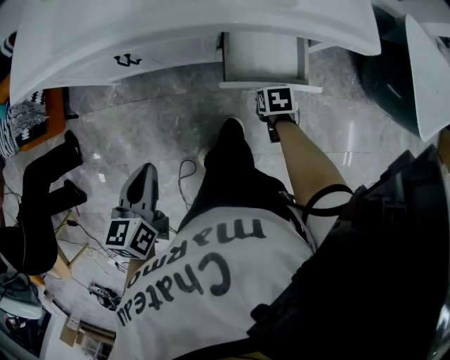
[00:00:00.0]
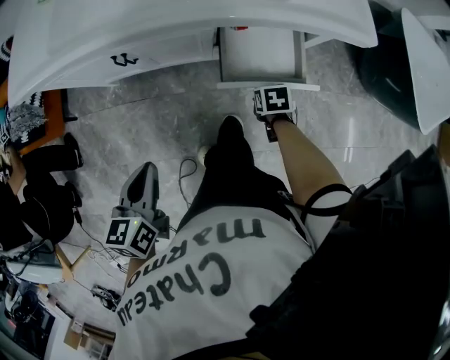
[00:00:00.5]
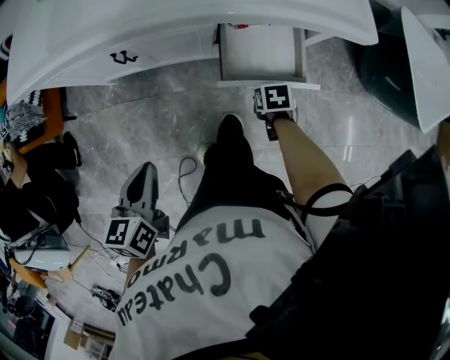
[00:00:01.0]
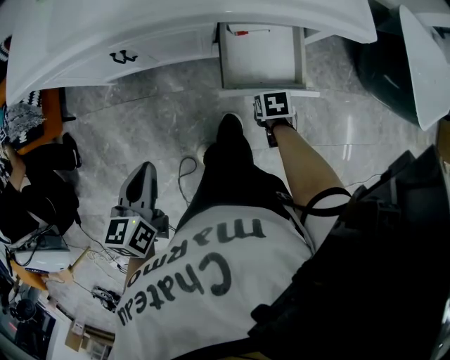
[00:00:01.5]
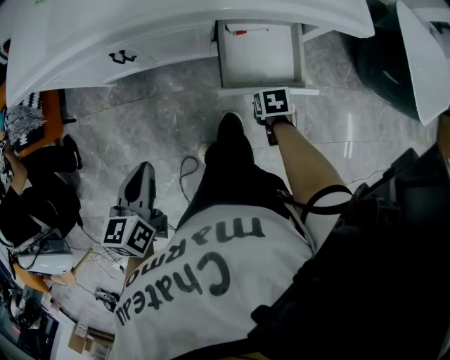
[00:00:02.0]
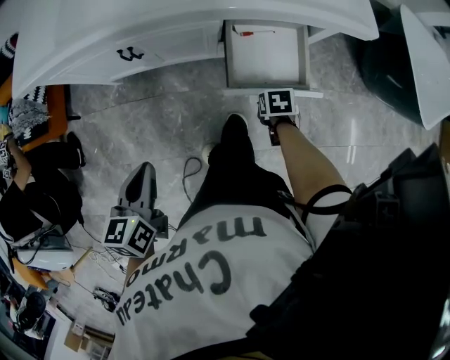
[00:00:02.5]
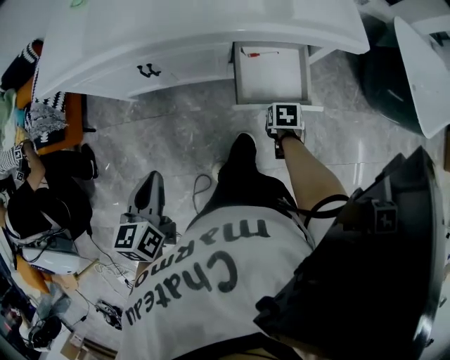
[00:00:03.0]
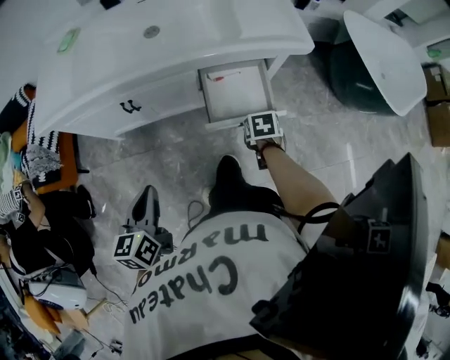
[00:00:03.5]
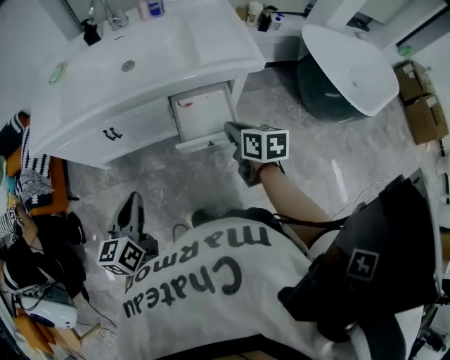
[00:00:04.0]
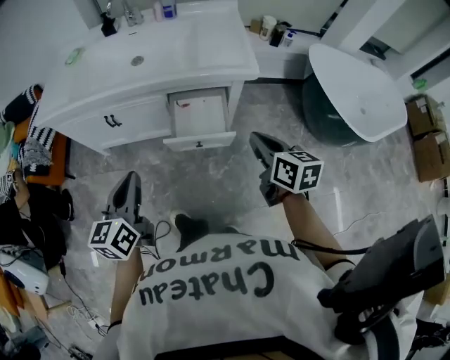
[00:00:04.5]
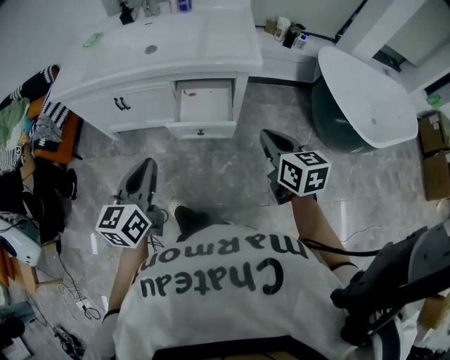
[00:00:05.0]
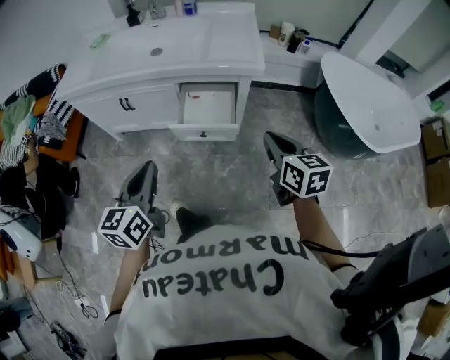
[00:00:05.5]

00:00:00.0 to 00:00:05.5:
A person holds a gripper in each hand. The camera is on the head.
00:00:00.0 to 00:00:02.0: The right gripper moves roughly 5 cm.
00:00:02.0 to 00:00:03.5: The right gripper travels upward by approximately 10 cm, and closes its fingers. Meanwhile the left gripper moves upward, roughly 5 cm.
00:00:03.5 to 00:00:05.5: The right gripper travels upward, to the right and backward by approximately 35 cm, and tilts its fingers some 40 degrees upward, while the left gripper travels to the right, upward and backward by some 25 cm.

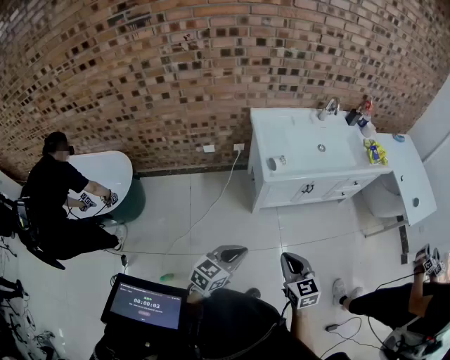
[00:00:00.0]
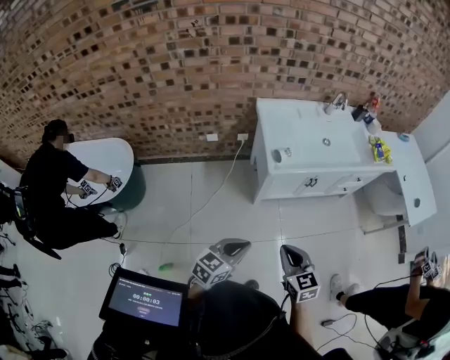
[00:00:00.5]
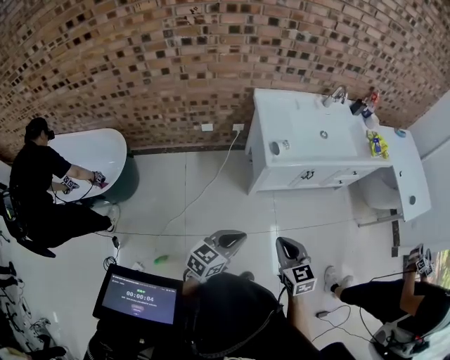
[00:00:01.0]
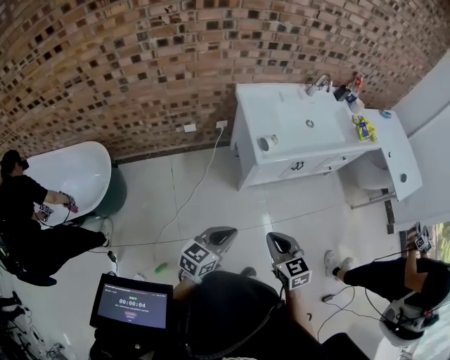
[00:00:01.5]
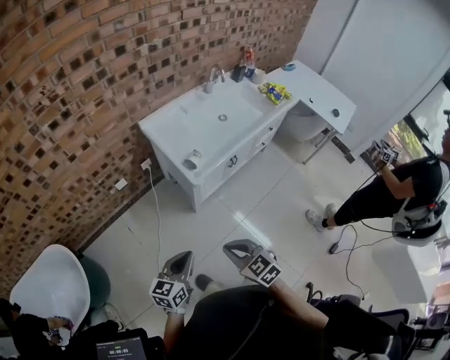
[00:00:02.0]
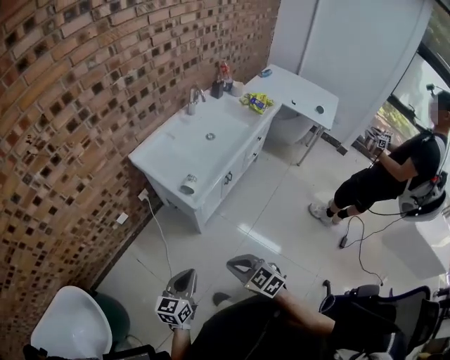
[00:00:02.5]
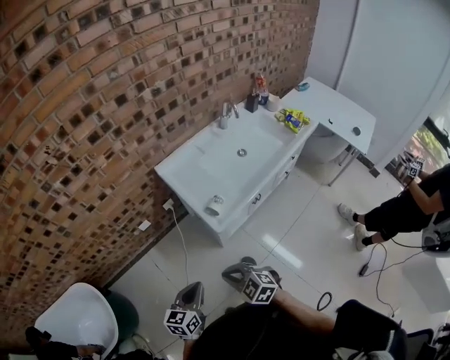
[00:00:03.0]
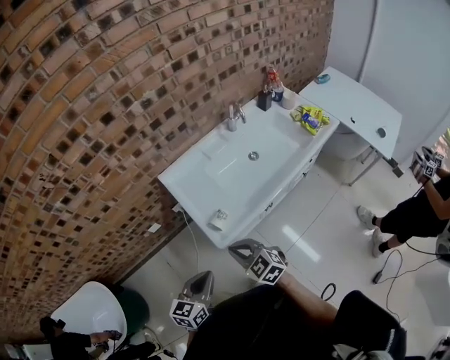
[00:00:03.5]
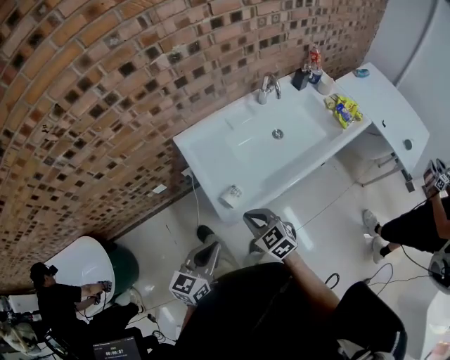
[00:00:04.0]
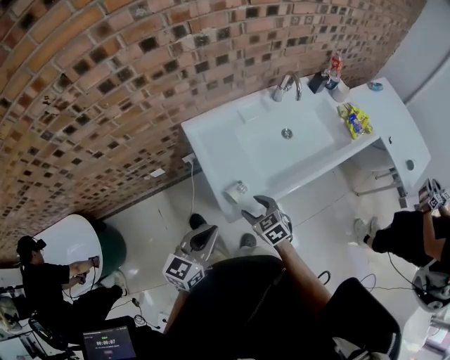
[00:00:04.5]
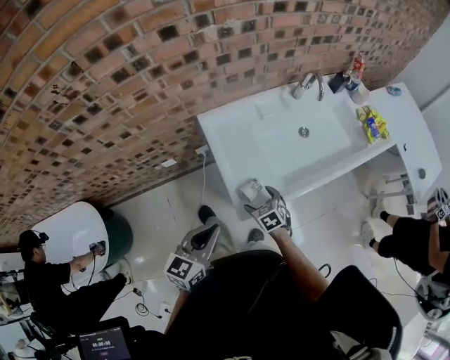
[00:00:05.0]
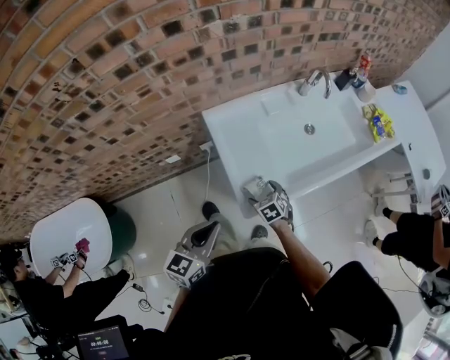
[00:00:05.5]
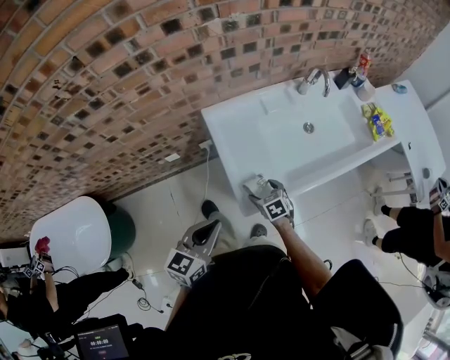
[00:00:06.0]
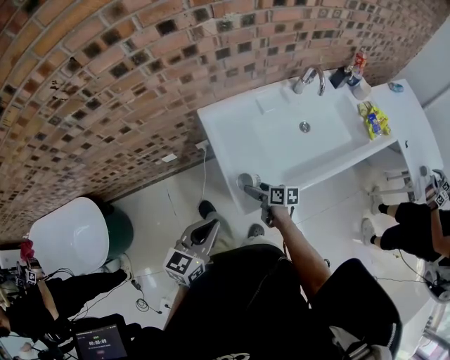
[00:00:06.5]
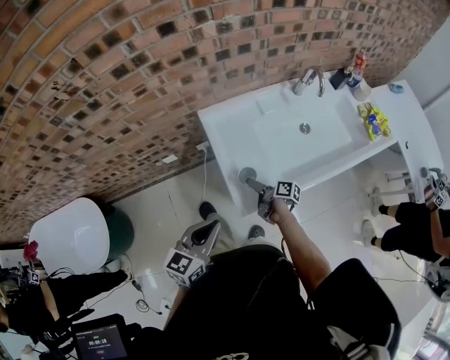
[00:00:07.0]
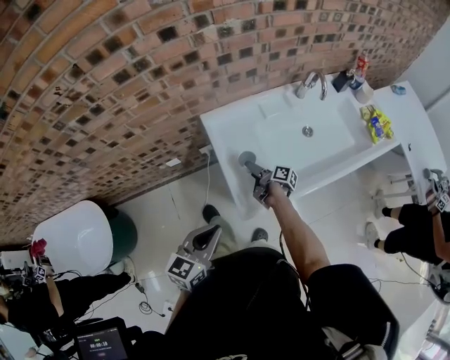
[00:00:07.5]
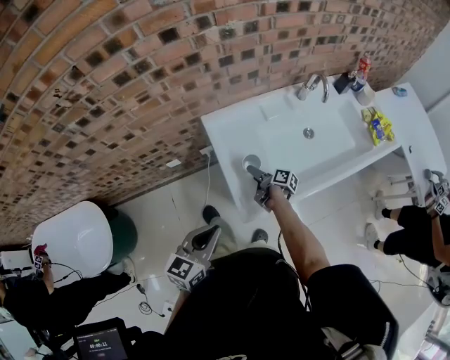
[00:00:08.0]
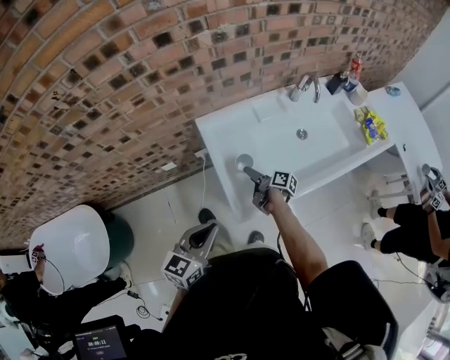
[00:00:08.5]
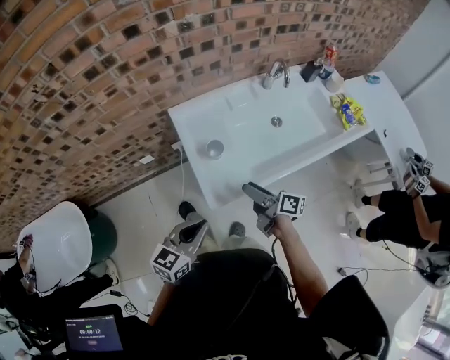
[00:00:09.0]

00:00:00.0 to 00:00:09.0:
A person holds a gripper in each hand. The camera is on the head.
00:00:00.0 to 00:00:02.0: The left gripper shifts approximately 15 cm to the left and forward, while the right gripper goes roughly 15 cm to the left.
00:00:02.0 to 00:00:04.5: Both grippers travel together forward, roughly 35 cm. The right gripper opens up.
00:00:04.5 to 00:00:07.0: The right gripper moves downward and forward, about 10 cm, rolls clockwise, seen from behind, by approximately 80 degrees, and opens up.
00:00:07.0 to 00:00:09.0: The left gripper moves to the right, approximately 5 cm. Meanwhile the right gripper goes some 20 cm upward, to the right and backward, and swivels about 20 degrees.

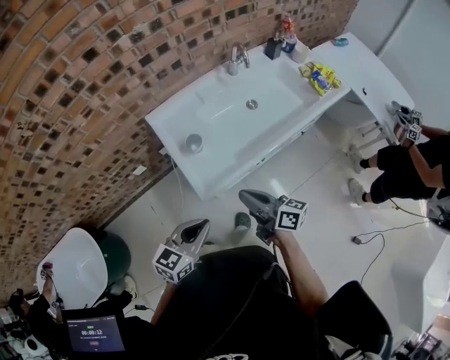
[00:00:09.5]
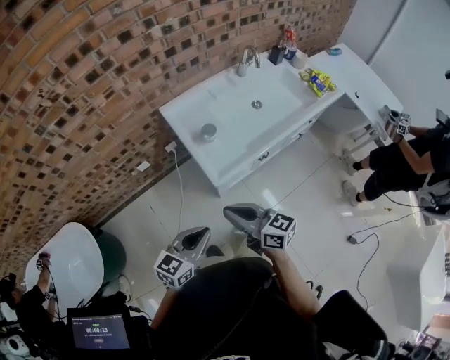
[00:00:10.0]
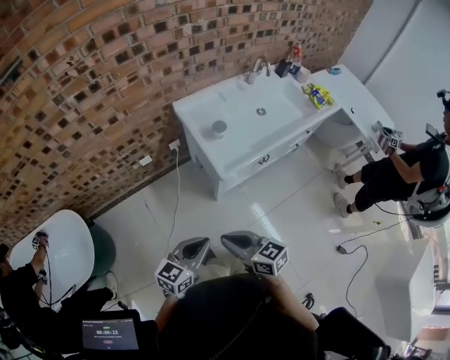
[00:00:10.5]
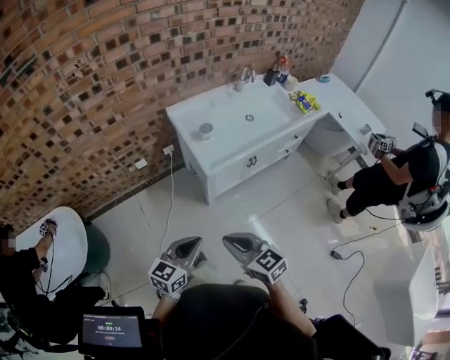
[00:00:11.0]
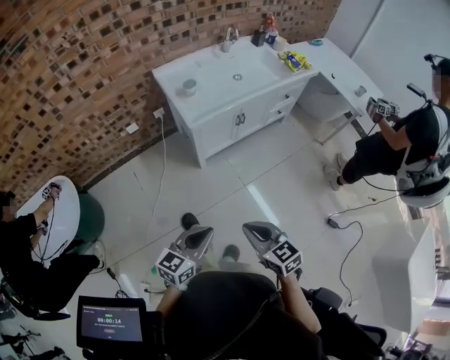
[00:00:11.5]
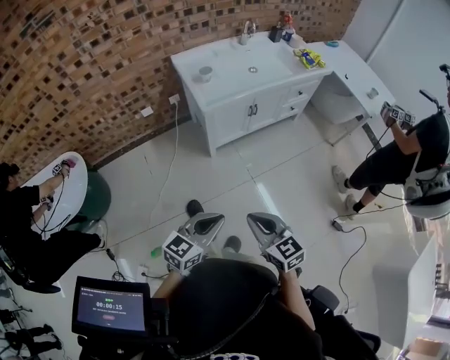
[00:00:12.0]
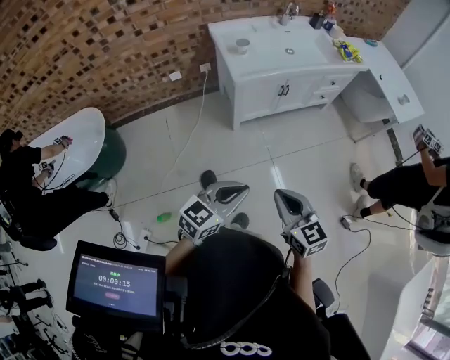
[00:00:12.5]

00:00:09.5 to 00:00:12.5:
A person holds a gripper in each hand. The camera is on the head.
00:00:09.5 to 00:00:11.0: The right gripper heads backward and to the left, covering approximately 35 cm, and twists roughly 40 degrees counterclockwise, seen from behind; the left gripper shifts approximately 25 cm backward.
00:00:11.0 to 00:00:12.5: The two grippers go about 25 cm backward and to the right.

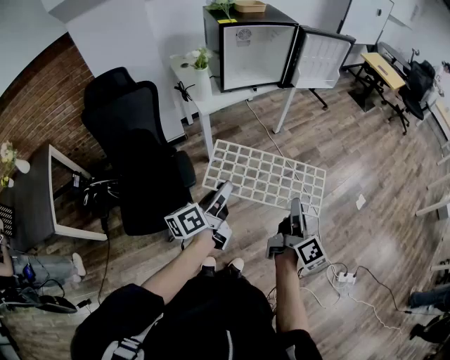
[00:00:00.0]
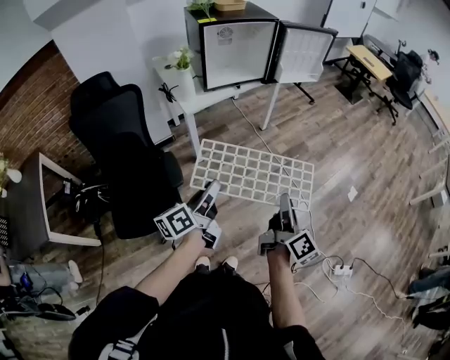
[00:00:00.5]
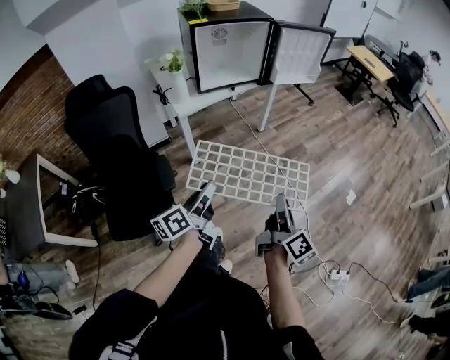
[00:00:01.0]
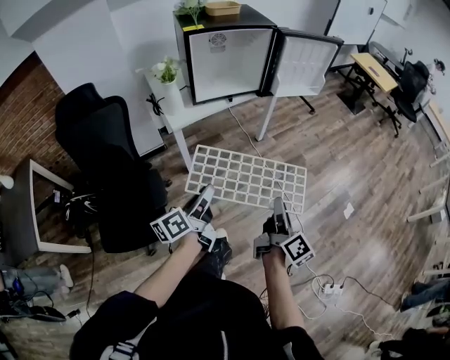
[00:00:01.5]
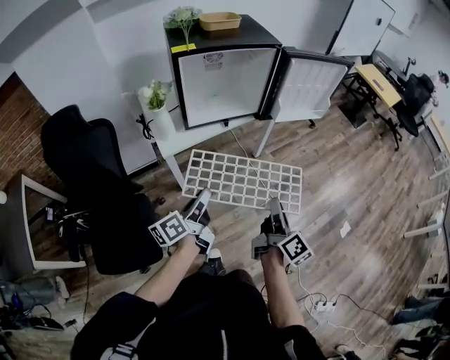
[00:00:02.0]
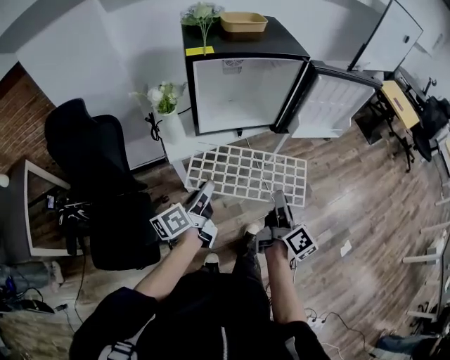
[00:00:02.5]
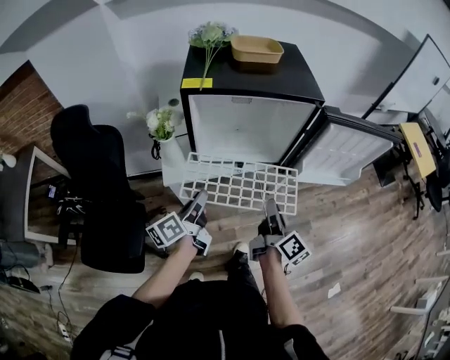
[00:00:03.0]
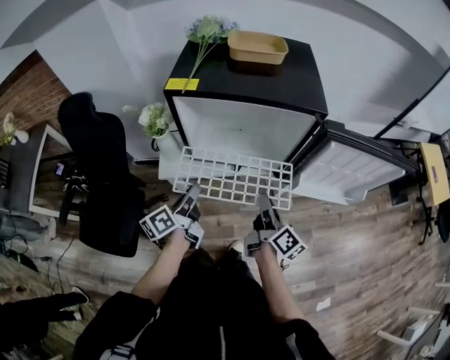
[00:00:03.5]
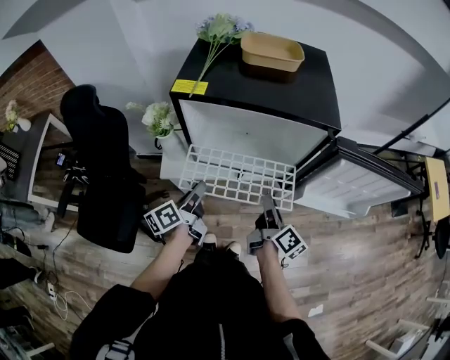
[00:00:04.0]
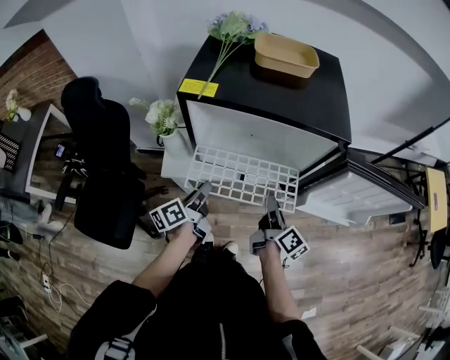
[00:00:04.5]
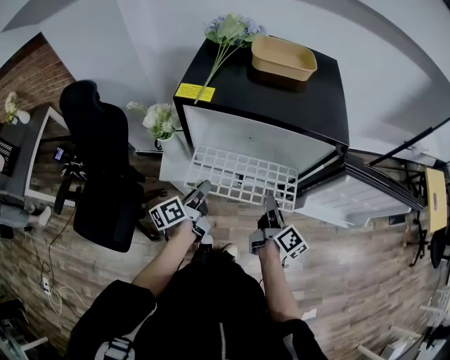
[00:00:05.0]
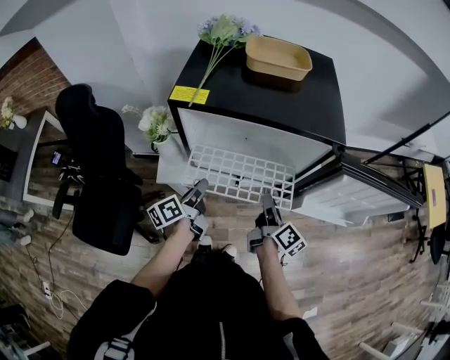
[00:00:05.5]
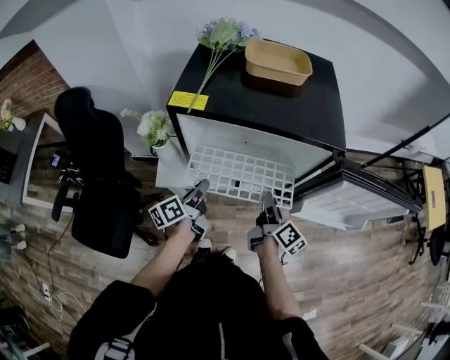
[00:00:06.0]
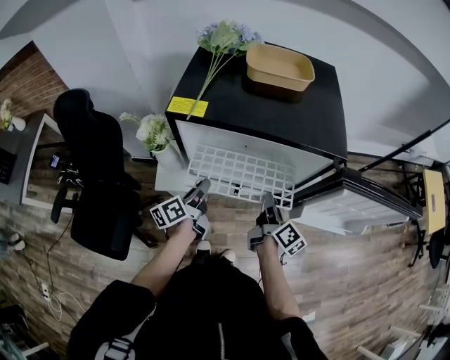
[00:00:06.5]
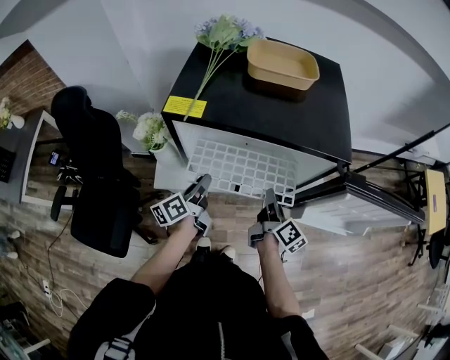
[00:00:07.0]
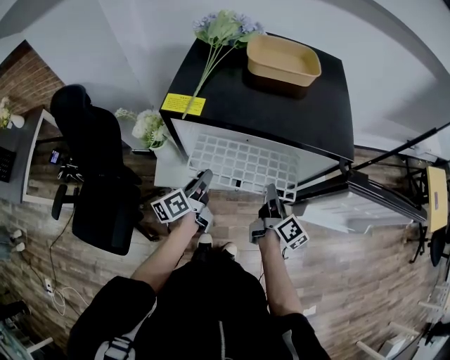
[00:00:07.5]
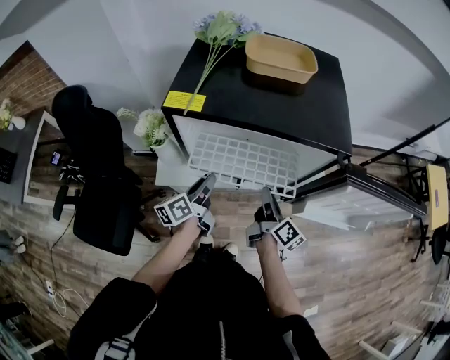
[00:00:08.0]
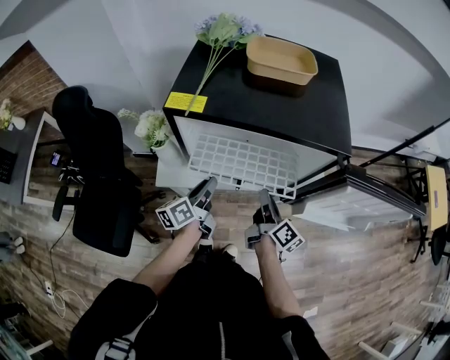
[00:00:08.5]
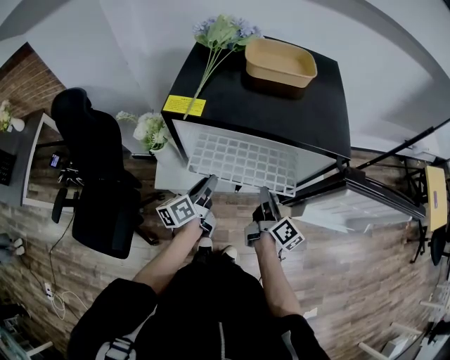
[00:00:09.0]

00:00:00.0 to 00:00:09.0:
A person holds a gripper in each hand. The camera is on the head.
00:00:00.0 to 00:00:02.0: Both grippers travel together forward, roughly 30 cm.
00:00:02.0 to 00:00:04.5: The right gripper ends up roughly 40 cm from where it was, and rotates roughly 30 degrees. The left gripper ends up some 30 cm from where it was, and changes its angle by approximately 30 degrees.
00:00:04.5 to 00:00:07.0: Both grippers travel together forward, about 10 cm.
00:00:07.0 to 00:00:09.0: The grippers stay close to where they were, moving slightly.
